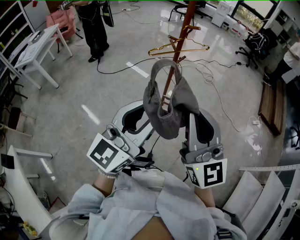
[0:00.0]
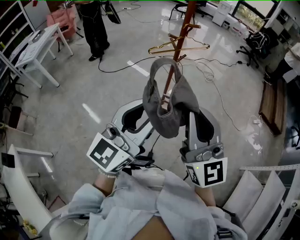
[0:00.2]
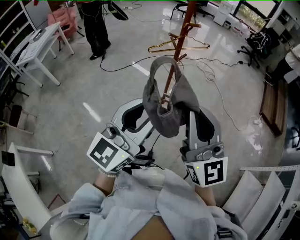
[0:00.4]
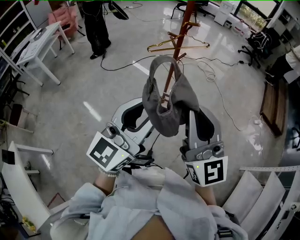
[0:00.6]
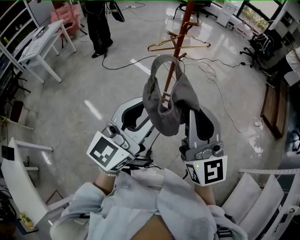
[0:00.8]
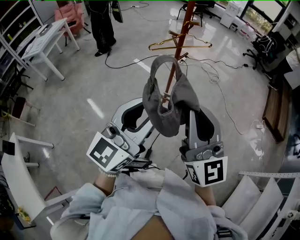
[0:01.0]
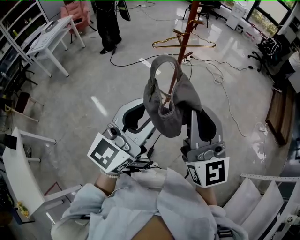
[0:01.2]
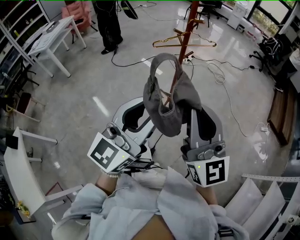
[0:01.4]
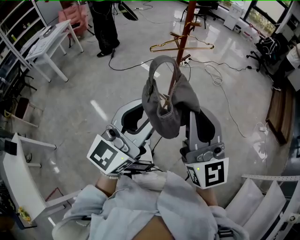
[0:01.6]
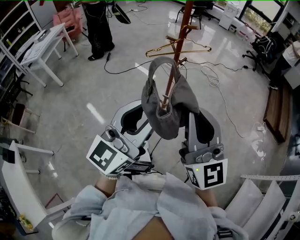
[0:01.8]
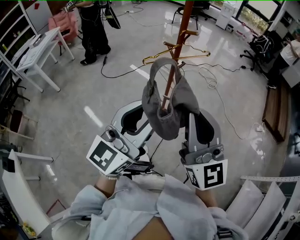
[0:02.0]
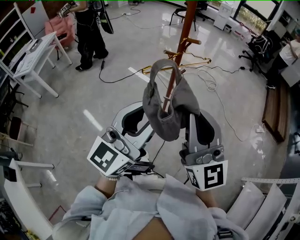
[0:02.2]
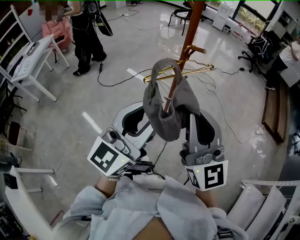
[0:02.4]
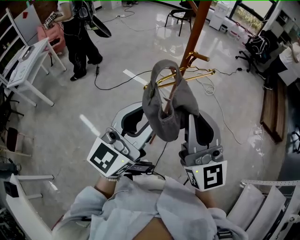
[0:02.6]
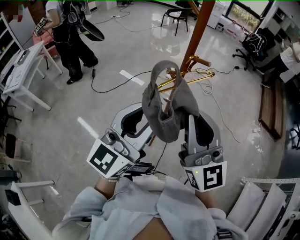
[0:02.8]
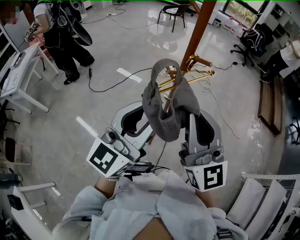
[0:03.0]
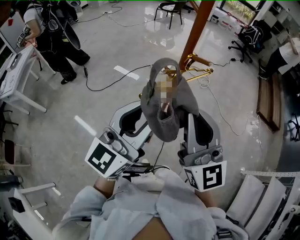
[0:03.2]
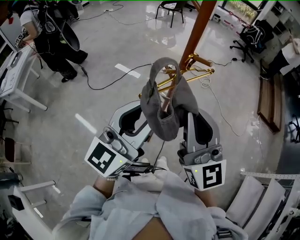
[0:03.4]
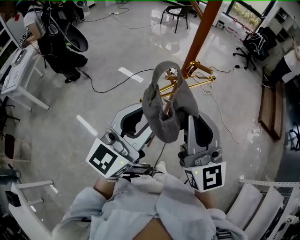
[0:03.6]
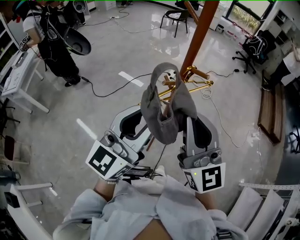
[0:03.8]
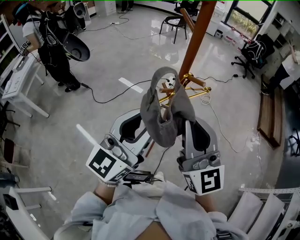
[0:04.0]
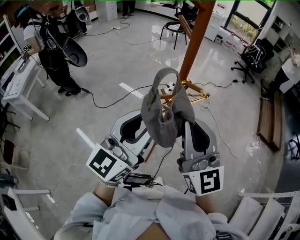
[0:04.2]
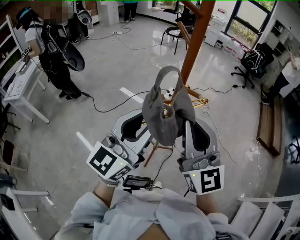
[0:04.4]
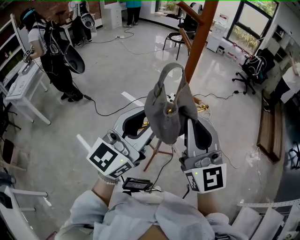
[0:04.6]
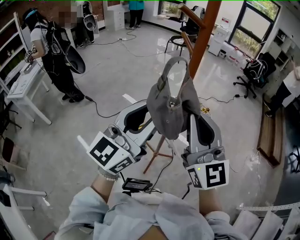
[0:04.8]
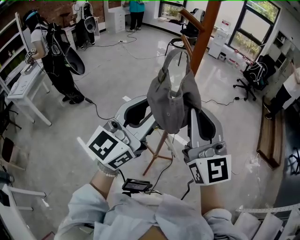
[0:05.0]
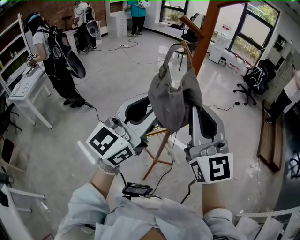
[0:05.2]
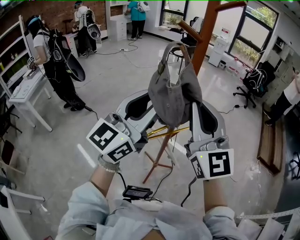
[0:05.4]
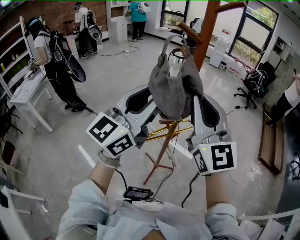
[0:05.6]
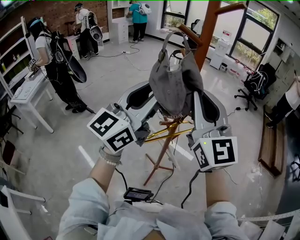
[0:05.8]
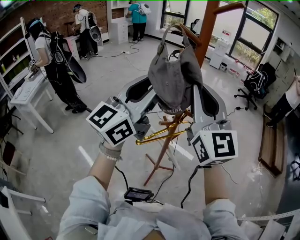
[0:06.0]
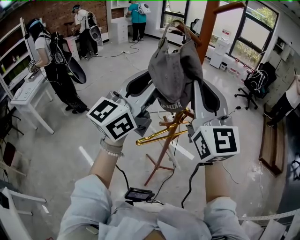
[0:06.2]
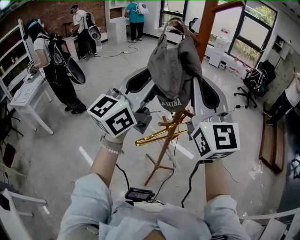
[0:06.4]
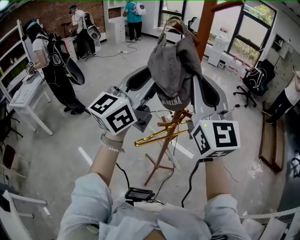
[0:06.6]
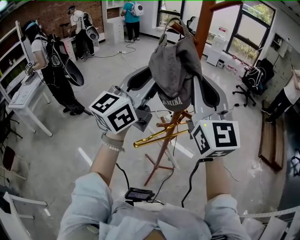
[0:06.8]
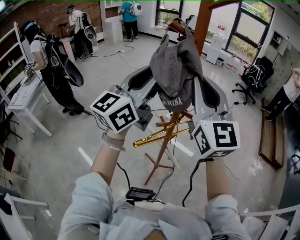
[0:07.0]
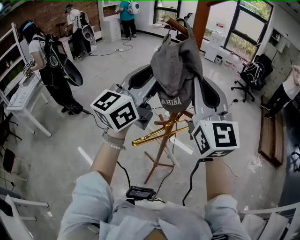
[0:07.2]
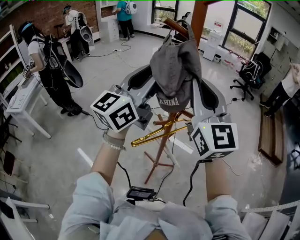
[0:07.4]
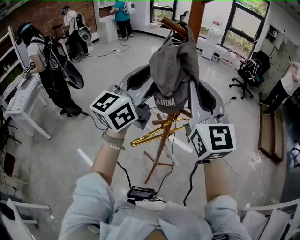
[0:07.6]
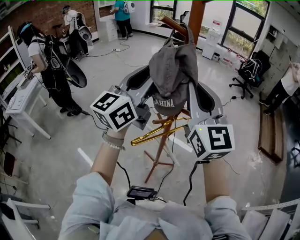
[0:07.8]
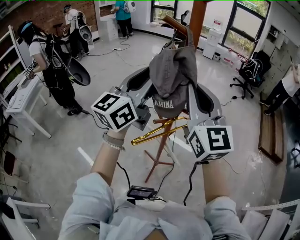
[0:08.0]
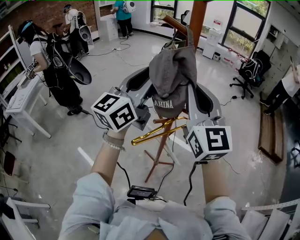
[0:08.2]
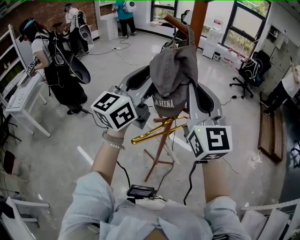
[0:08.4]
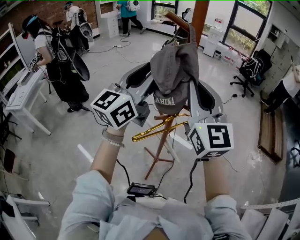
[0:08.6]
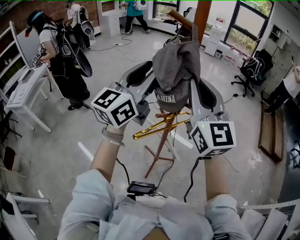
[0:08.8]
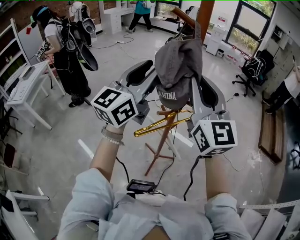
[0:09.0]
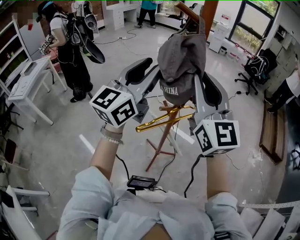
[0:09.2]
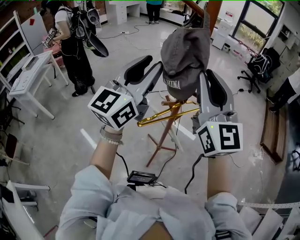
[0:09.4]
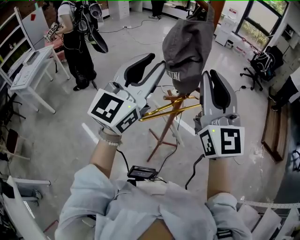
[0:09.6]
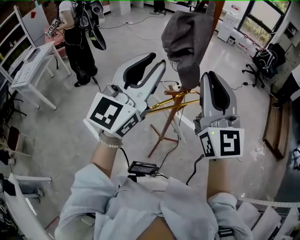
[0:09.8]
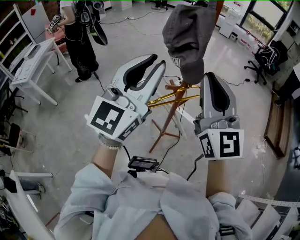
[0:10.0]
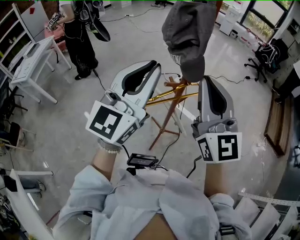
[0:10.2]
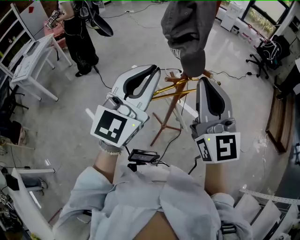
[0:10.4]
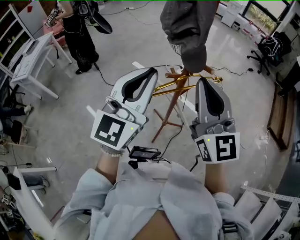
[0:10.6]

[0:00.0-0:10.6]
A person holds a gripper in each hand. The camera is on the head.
0:00.0 to 0:01.6: There are only small adjustments of the grippers.
0:01.6 to 0:03.0: Both grippers move forward, roughly 25 cm.
0:03.0 to 0:04.6: The grippers both shift forward by approximately 10 cm.
0:04.6 to 0:06.0: Both grippers travel together upward and forward, some 15 cm.
0:06.0 to 0:07.6: The left gripper shifts about 5 cm forward.
0:07.6 to 0:09.0: The grippers move only a little.
0:09.0 to 0:10.6: The right gripper travels downward and backward by about 10 cm. The left gripper moves backward and downward, roughly 15 cm, swivels about 20 degrees, and closes its fingers.

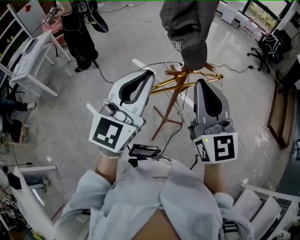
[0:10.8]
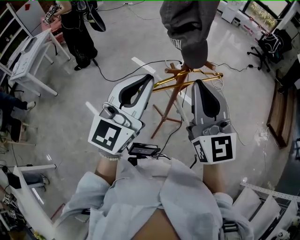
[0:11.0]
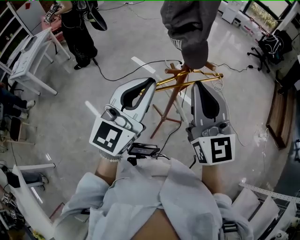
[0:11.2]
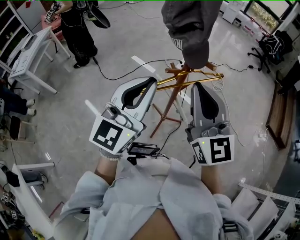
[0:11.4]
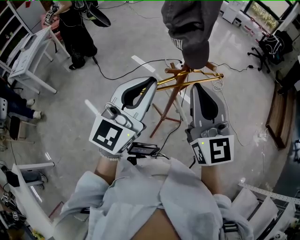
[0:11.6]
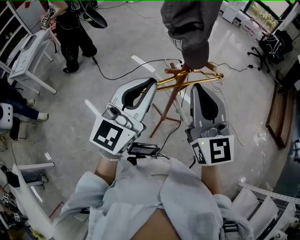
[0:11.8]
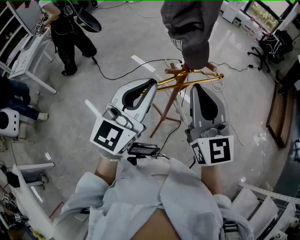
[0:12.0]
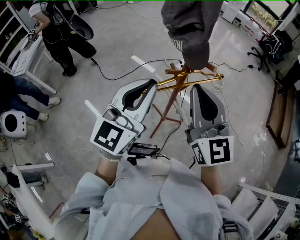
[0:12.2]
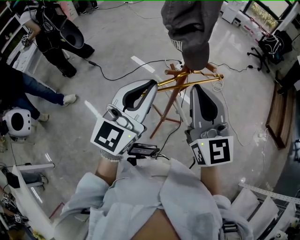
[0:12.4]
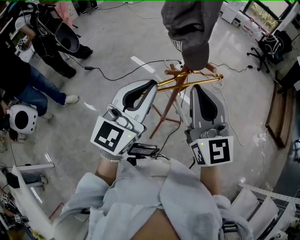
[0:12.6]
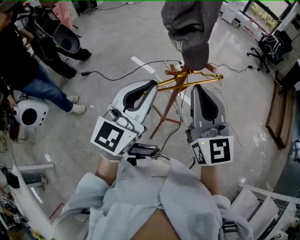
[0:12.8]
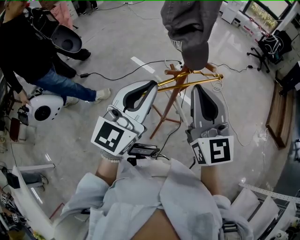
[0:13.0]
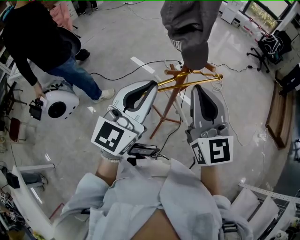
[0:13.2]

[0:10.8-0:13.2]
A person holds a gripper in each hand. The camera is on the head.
0:10.8 to 0:12.0: The grippers stay close to where they were, moving slightly.
0:12.0 to 0:13.2: The two grippers keep their place.

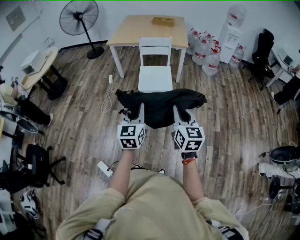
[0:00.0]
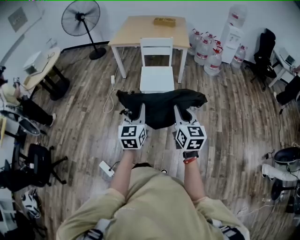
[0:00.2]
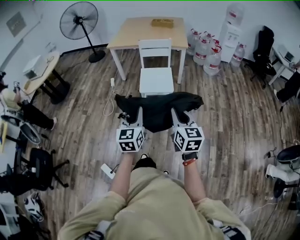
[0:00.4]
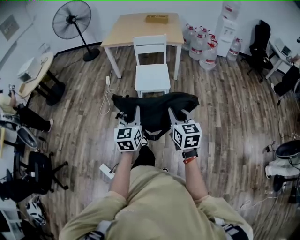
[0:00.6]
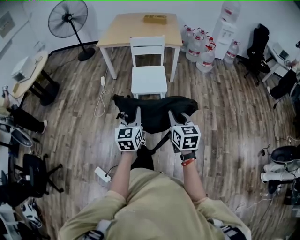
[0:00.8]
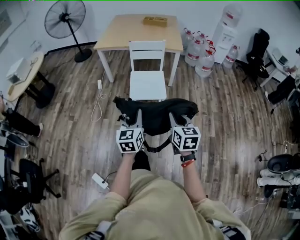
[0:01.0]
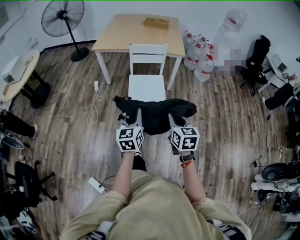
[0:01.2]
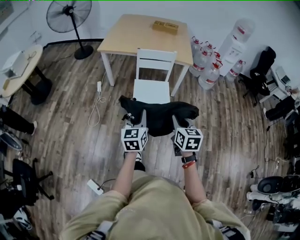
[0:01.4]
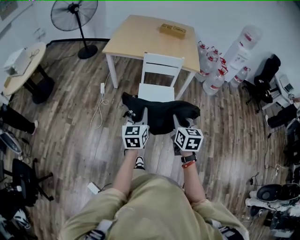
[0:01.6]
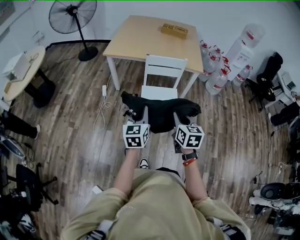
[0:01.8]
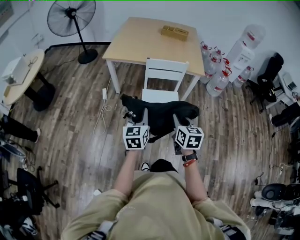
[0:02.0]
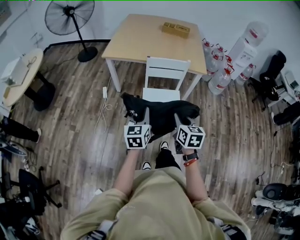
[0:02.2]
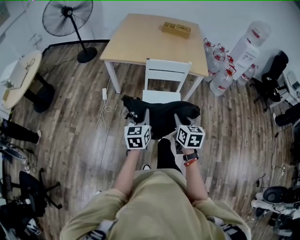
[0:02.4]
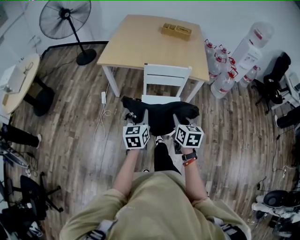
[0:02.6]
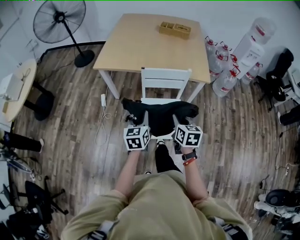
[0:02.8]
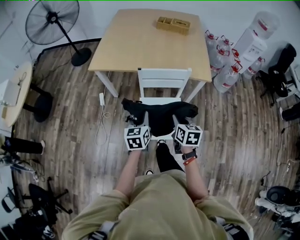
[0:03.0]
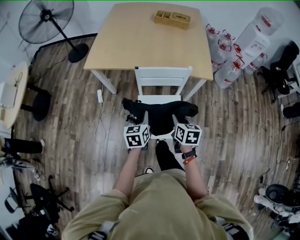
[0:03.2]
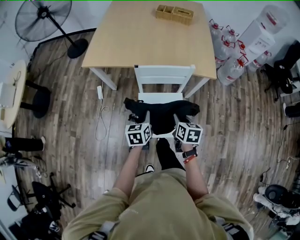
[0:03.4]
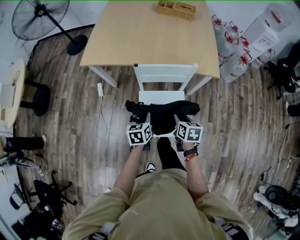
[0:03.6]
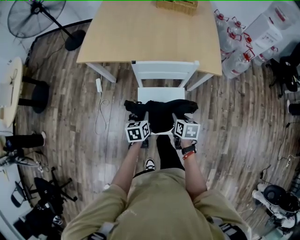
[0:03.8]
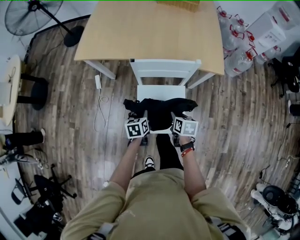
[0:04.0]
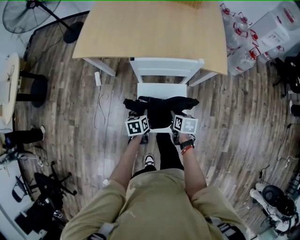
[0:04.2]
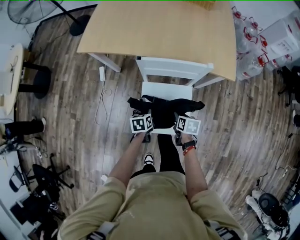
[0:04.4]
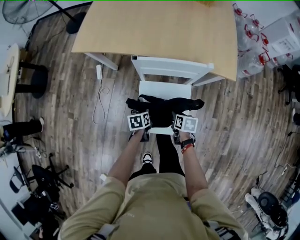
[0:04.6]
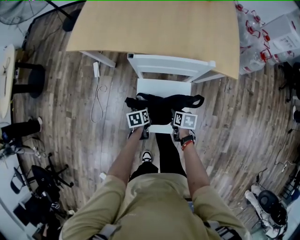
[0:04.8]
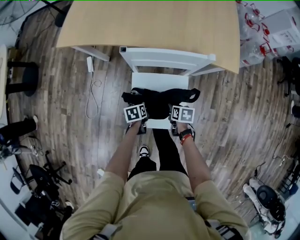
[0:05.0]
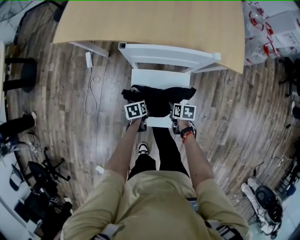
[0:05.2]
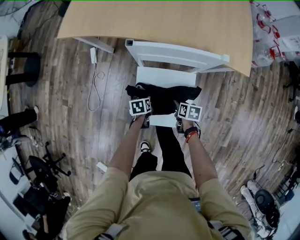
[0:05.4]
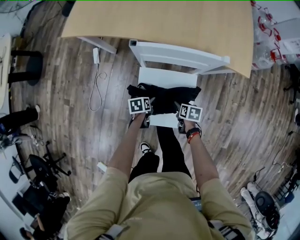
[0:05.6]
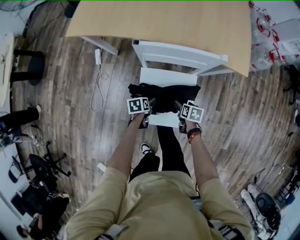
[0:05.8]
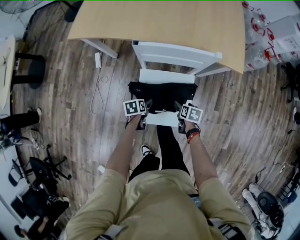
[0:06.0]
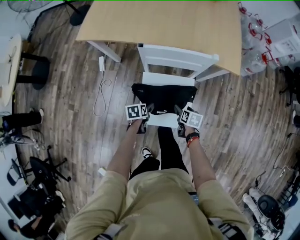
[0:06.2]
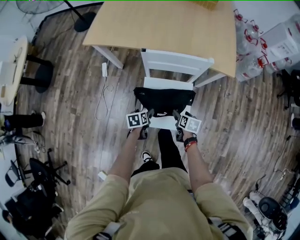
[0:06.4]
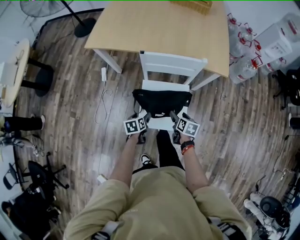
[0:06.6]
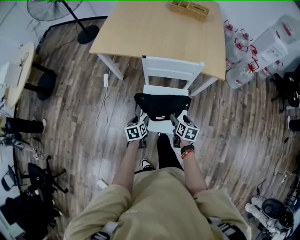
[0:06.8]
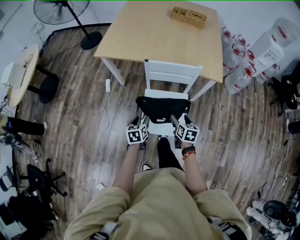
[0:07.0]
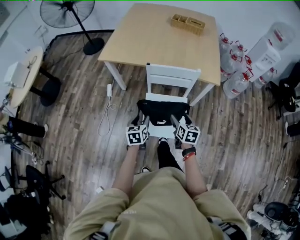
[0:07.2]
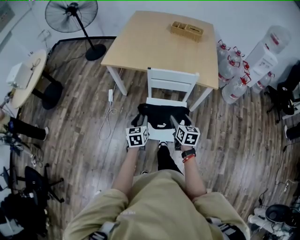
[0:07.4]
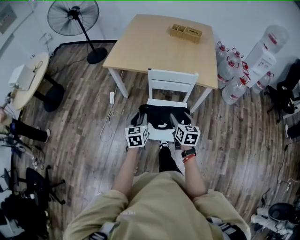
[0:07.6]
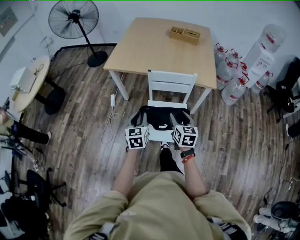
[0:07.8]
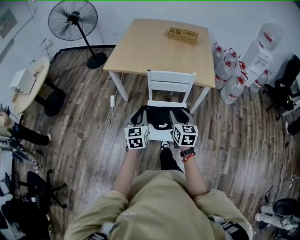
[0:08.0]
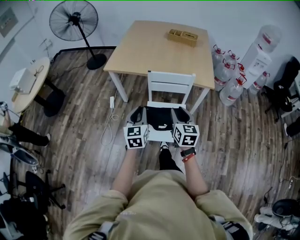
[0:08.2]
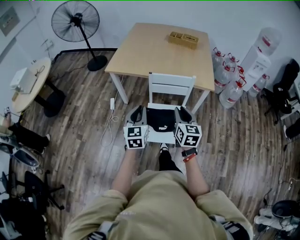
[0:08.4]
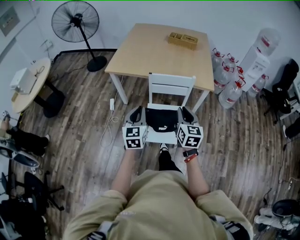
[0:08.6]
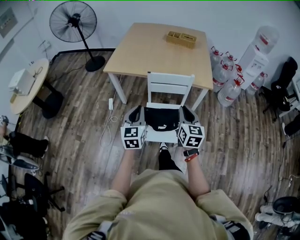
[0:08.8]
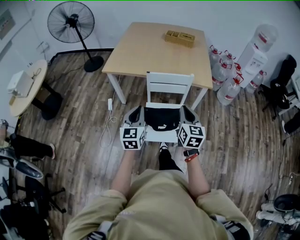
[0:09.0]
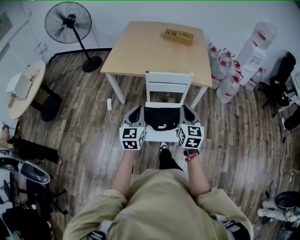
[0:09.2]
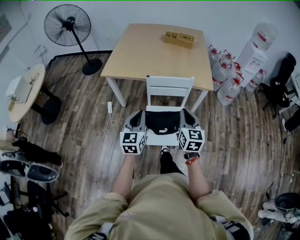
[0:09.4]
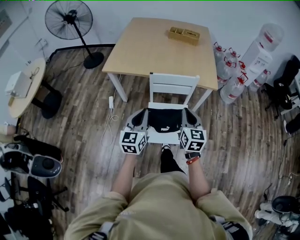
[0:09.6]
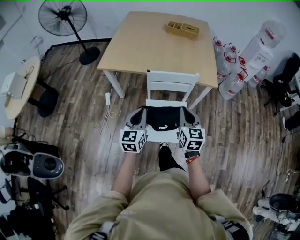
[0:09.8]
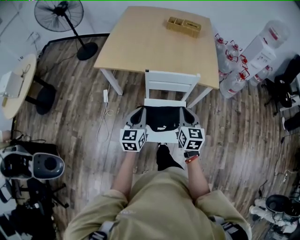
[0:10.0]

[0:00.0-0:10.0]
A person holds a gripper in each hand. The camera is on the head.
0:00.0 to 0:01.4: Both grippers move forward, roughly 30 cm.
0:01.4 to 0:02.8: Both grippers travel together forward, approximately 35 cm.
0:02.8 to 0:04.2: The grippers both shift downward and forward by approximately 30 cm. The right gripper swivels some 30 degrees. The left gripper points its fingers roughly 30 degrees further downward.
0:04.2 to 0:05.8: Both grippers move downward, some 15 cm. The right gripper opens its fingers, while the left gripper opens up.
0:05.8 to 0:07.2: The two grippers go approximately 30 cm upward and backward. The right gripper turns by roughly 30 degrees. The left gripper swivels approximately 40 degrees, and closes.
0:07.2 to 0:08.6: The two grippers go roughly 20 cm upward. The right gripper swivels some 30 degrees, and closes up. Meanwhile the left gripper swivels some 30 degrees, and closes its fingers.
0:08.6 to 0:10.0: The right gripper moves forward, about 10 cm, while the left gripper moves forward and downward, about 15 cm.

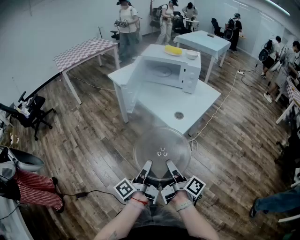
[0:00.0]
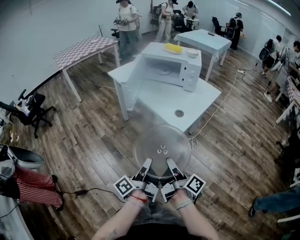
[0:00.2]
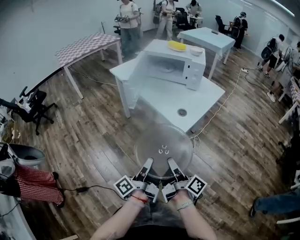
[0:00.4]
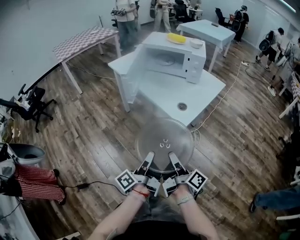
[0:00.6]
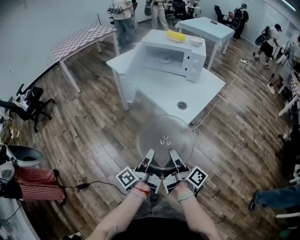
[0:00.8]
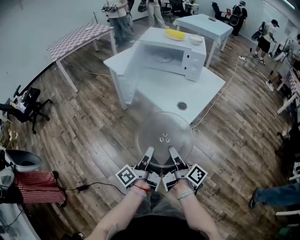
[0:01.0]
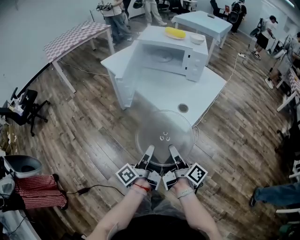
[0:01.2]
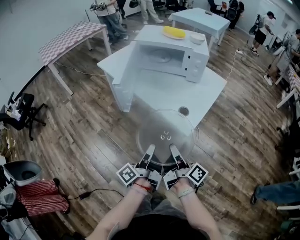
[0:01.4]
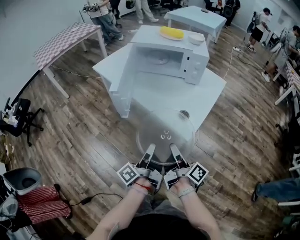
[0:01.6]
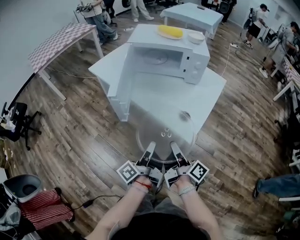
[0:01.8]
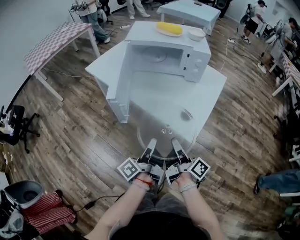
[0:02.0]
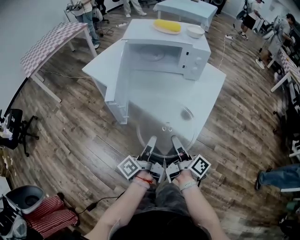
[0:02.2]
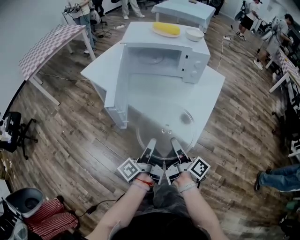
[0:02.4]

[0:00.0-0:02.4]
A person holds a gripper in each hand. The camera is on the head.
0:00.0 to 0:01.2: The right gripper changes place by some 10 cm.
0:01.2 to 0:02.4: The right gripper shifts by some 15 cm.
